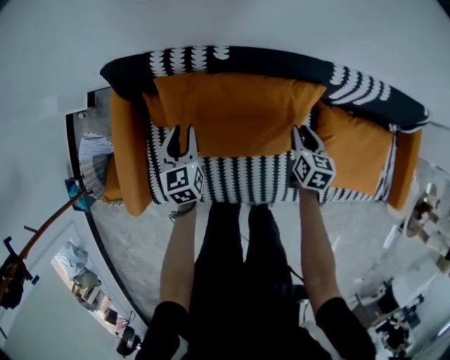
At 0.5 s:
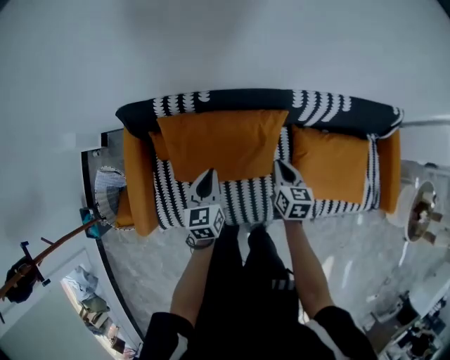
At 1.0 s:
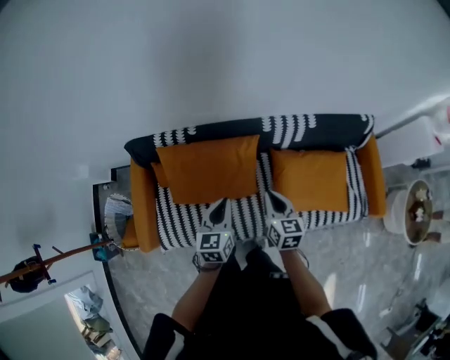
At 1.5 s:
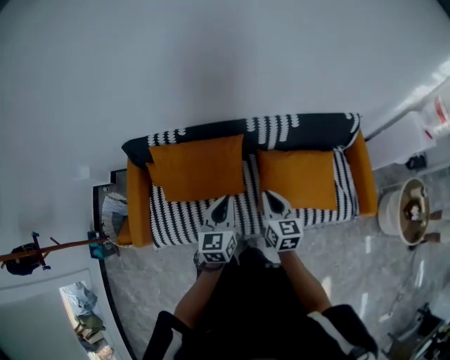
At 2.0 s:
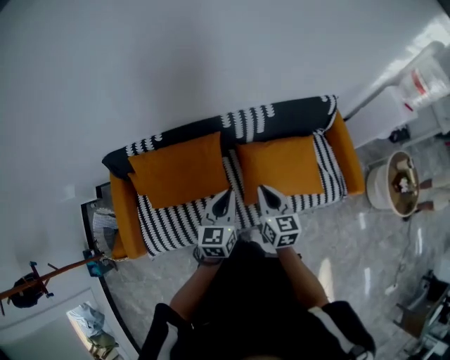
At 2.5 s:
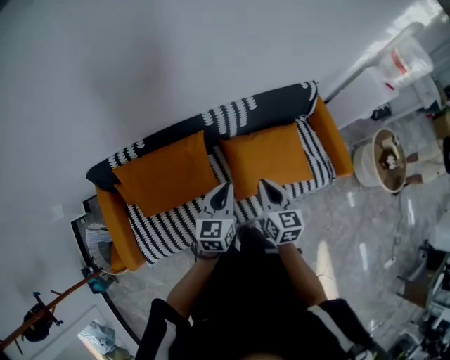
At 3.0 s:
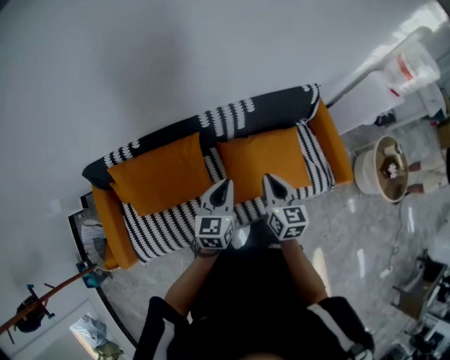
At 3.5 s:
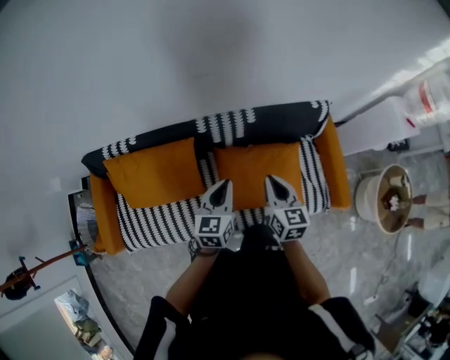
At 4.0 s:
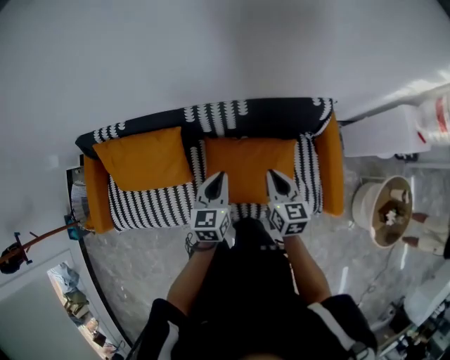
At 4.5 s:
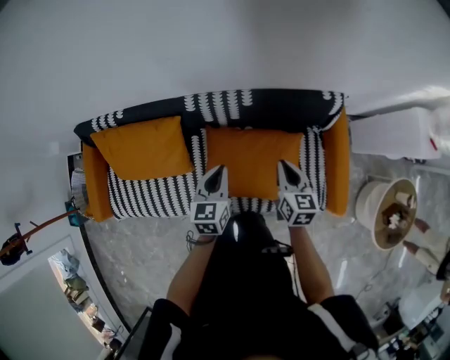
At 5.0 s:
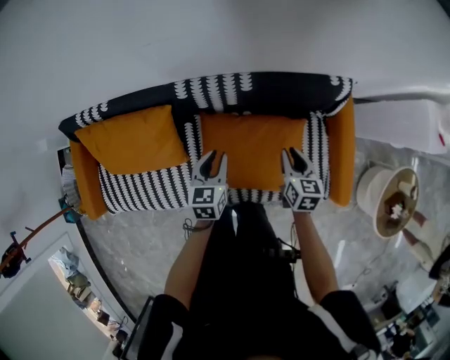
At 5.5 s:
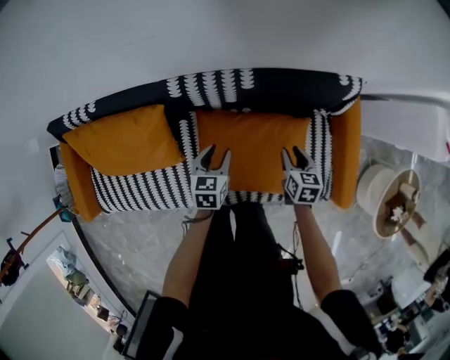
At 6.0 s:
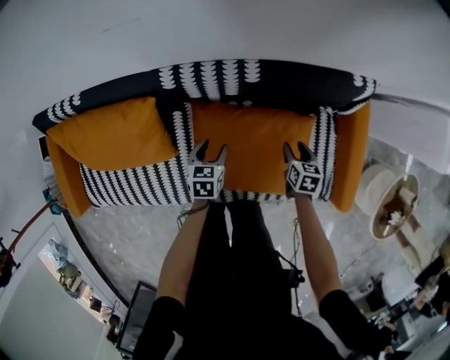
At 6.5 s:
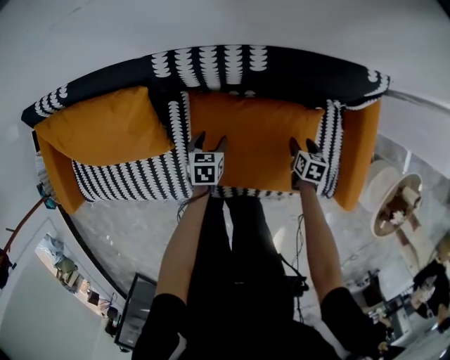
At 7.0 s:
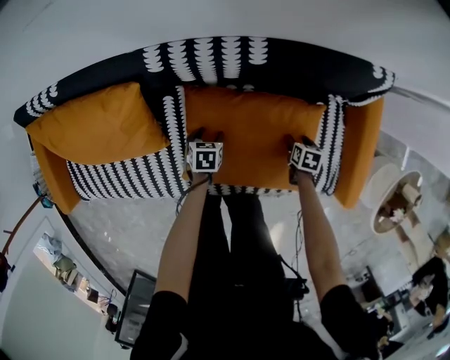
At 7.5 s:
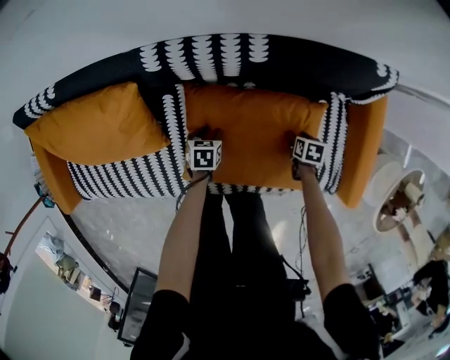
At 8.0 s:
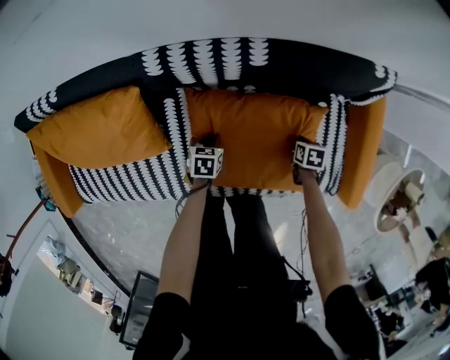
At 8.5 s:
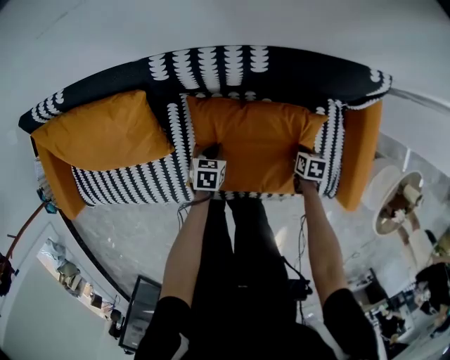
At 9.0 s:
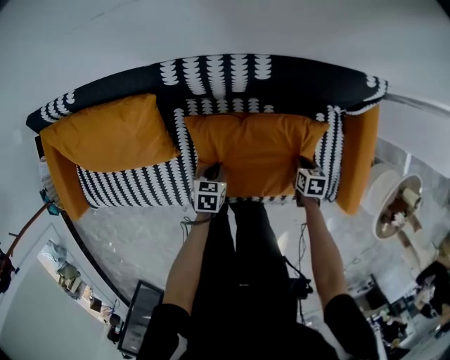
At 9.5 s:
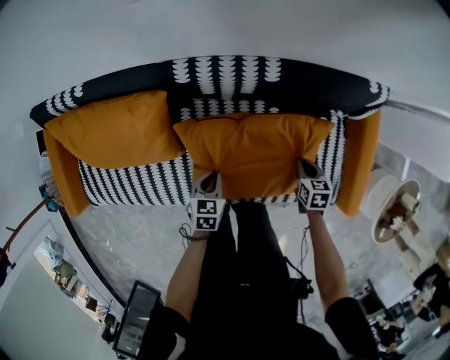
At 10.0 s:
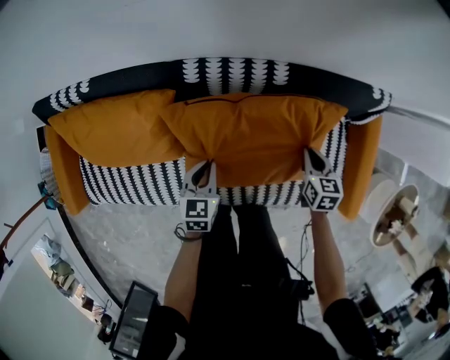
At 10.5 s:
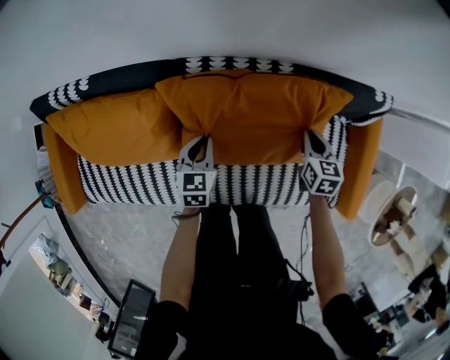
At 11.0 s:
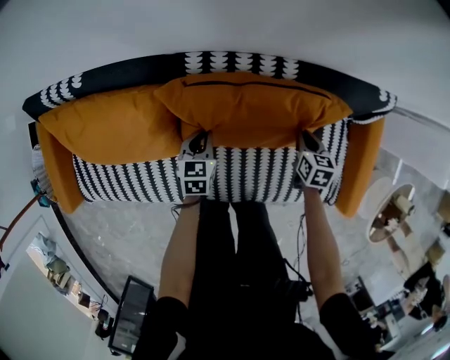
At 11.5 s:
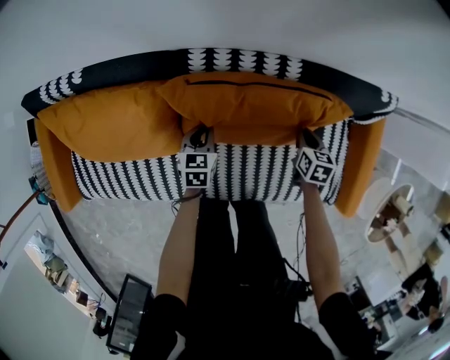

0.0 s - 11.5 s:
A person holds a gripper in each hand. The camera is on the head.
0.0 s - 2.0 s: The right gripper is displaced upward, backward and to the right by some 40 cm, rotates about 20 degrees, and closes its fingers, while the left gripper travels to the right, upward and backward by roughly 50 cm, turns by some 30 degrees, and closes.
2.0 s - 4.0 s: Both grippers move to the right and forward, approximately 30 cm.
4.0 s - 6.0 s: Both grippers travel together downward, roughly 35 cm. The left gripper turns by roughly 30 degrees, and opens its fingers. The right gripper angles its fingers downward, by about 30 degrees, and opens.
6.0 s - 7.5 s: Both grippers move downward, some 15 cm. The right gripper rotates approximately 20 degrees.
7.5 s - 9.5 s: The grippers both shift upward by about 15 cm. The right gripper rotates about 20 degrees, and closes. Meanwhile the left gripper closes up.
9.5 s - 11.5 s: Both grippers move forward and to the left, roughly 15 cm.

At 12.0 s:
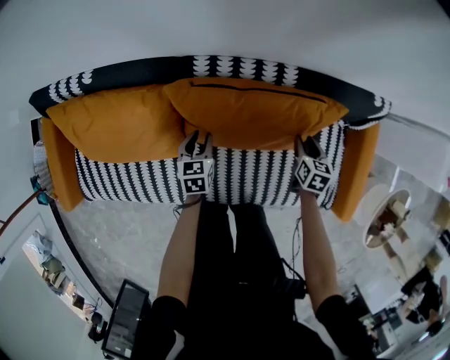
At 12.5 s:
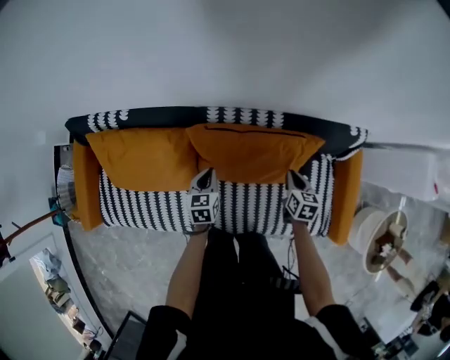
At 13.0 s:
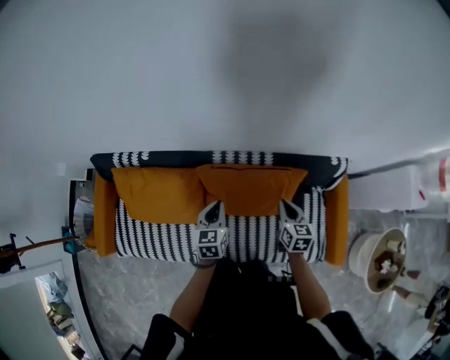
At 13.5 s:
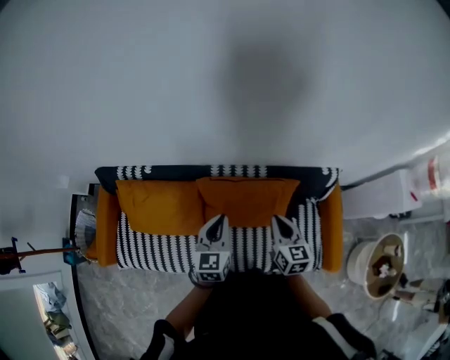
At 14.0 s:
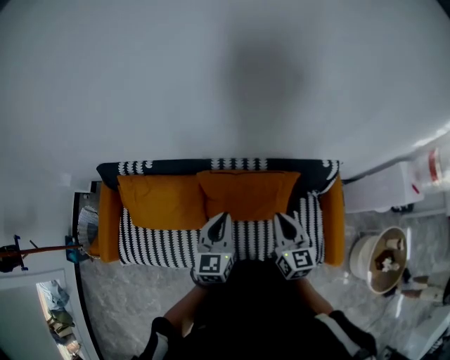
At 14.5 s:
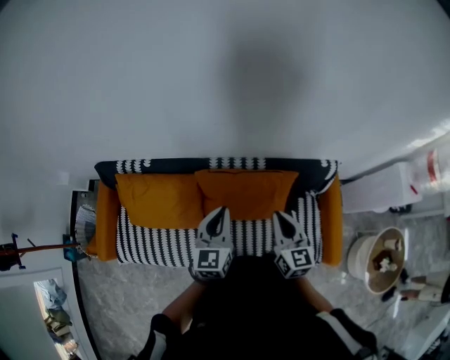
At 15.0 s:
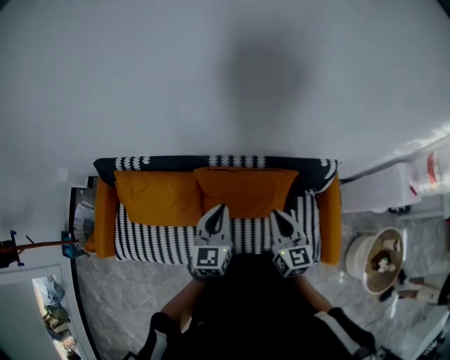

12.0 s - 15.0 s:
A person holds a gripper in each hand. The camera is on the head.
12.0 s - 13.5 s: The two grippers go roughly 40 cm upward. The left gripper swivels some 30 degrees, and closes its fingers. The right gripper tips its fingers upward by about 30 degrees, and closes.
13.5 s - 15.0 s: The right gripper travels upward by roughly 5 cm.

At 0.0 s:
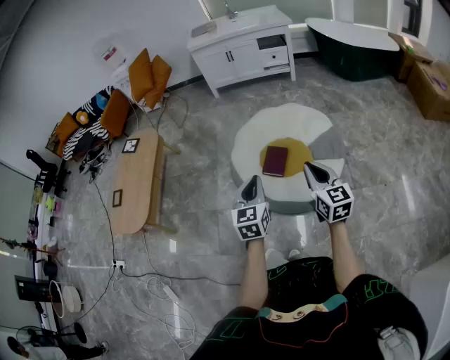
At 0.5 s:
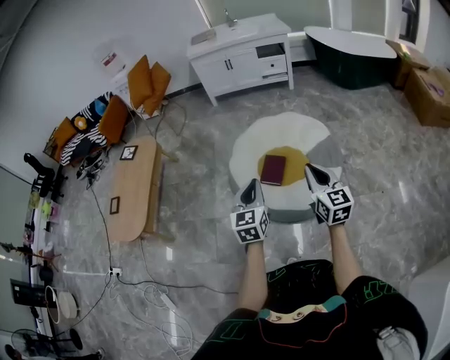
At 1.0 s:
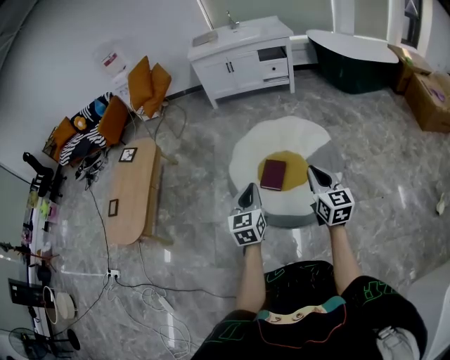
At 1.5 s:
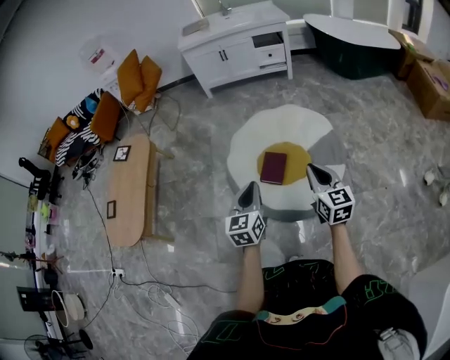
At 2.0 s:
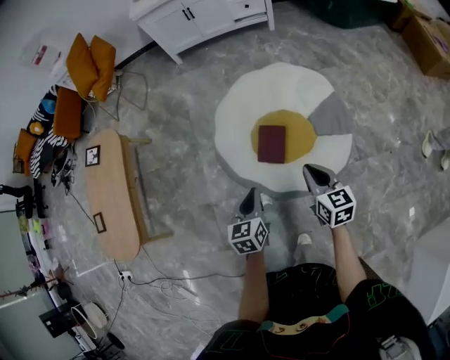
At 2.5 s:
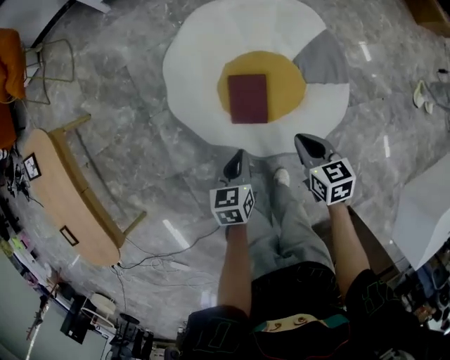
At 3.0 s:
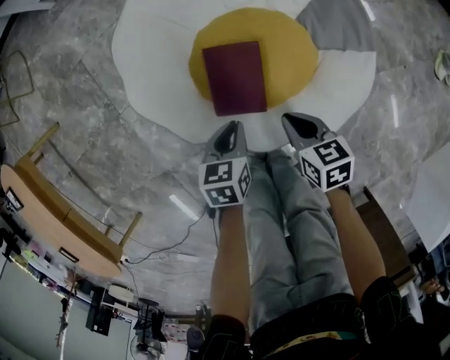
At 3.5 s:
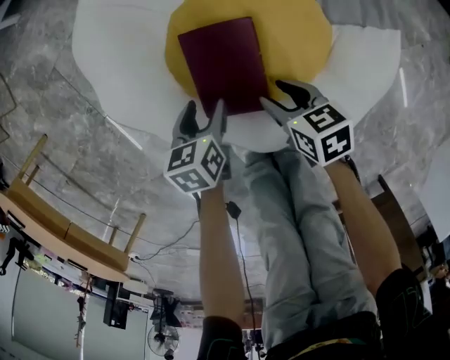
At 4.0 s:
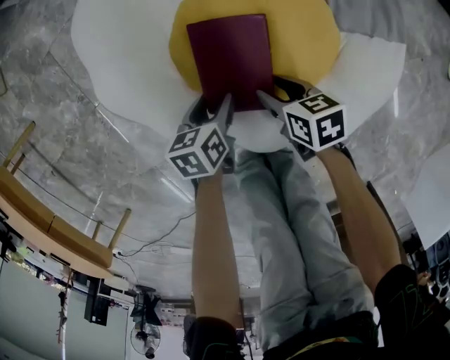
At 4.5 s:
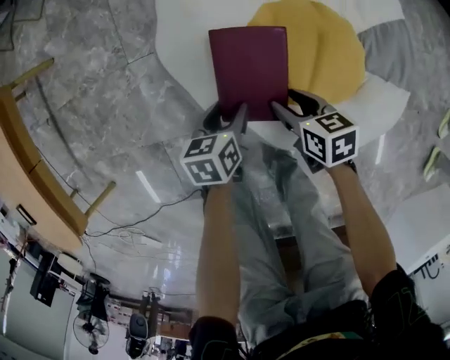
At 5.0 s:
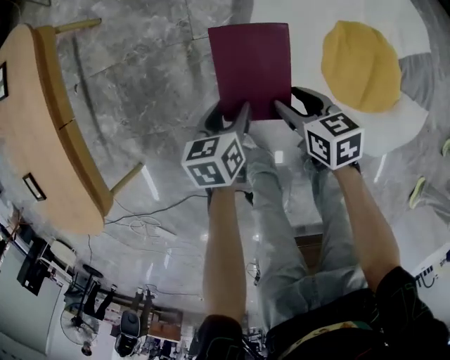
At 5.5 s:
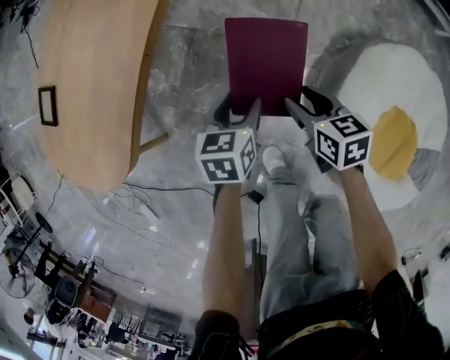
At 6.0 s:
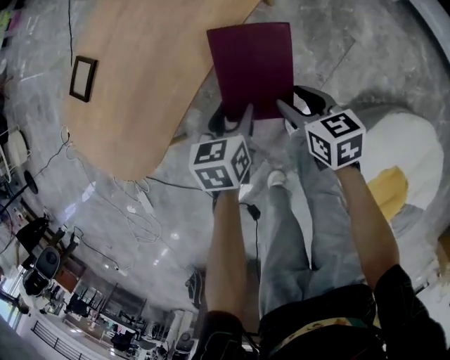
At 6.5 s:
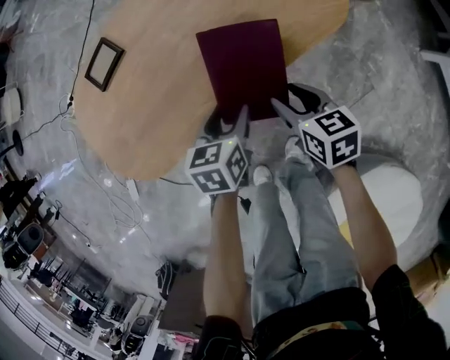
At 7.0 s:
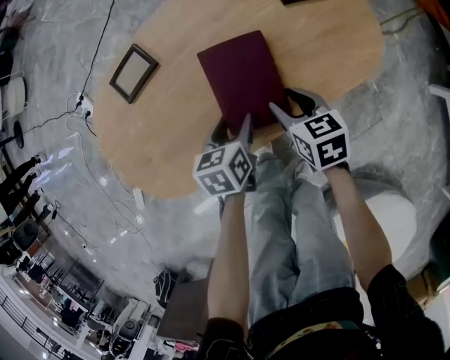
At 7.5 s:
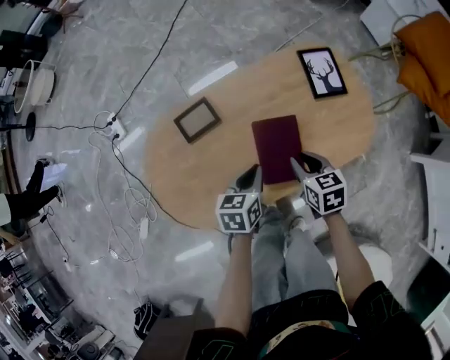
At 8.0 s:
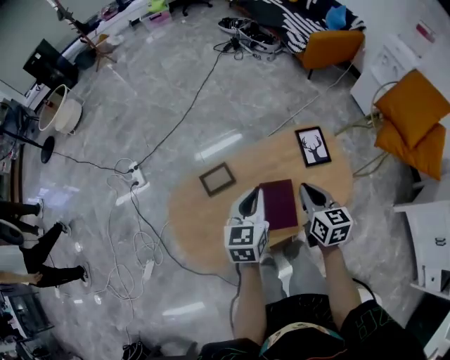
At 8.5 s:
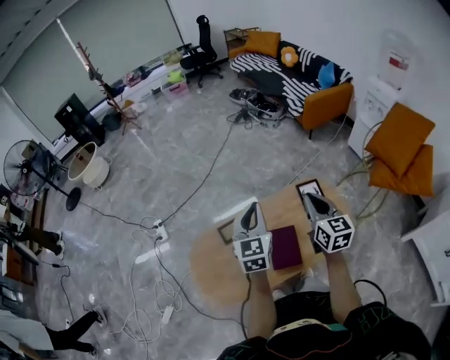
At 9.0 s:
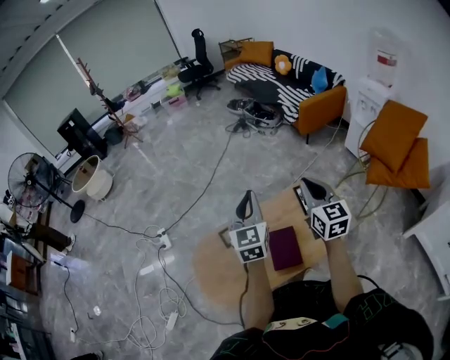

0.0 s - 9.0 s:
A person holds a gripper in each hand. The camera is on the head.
0.0 s - 2.0 s: Both grippers travel together downward and forward, about 25 cm. The left gripper turns by about 20 degrees. Meanwhile the right gripper changes its angle by about 20 degrees.
2.0 s - 4.5 s: Both grippers travel together downward, roughly 40 cm. The left gripper changes its angle by about 30 degrees, and opens up. Meanwhile the right gripper turns by approximately 30 degrees, and opens its fingers.
4.5 s - 7.0 s: Both grippers are carried about 90 cm. The right gripper twists about 60 degrees counterclockwise, seen from behind; the left gripper swivels some 70 degrees.
7.0 s - 9.0 s: The grippers both shift upward by about 60 cm. The right gripper angles its fingers upward, by about 40 degrees, and closes. Meanwhile the left gripper angles its fingers upward, by approximately 50 degrees, and closes up.

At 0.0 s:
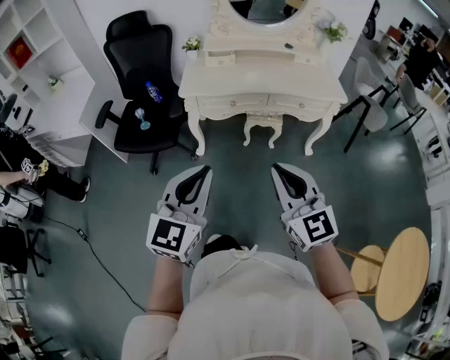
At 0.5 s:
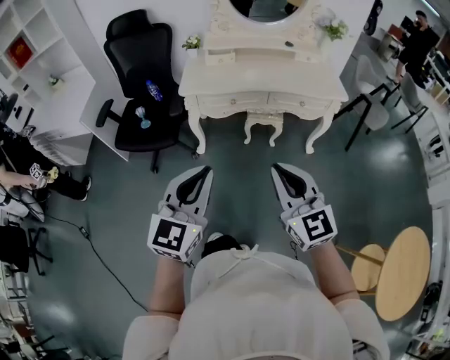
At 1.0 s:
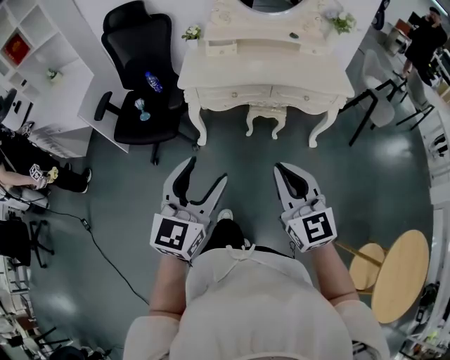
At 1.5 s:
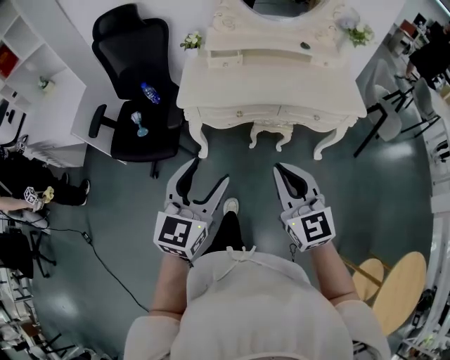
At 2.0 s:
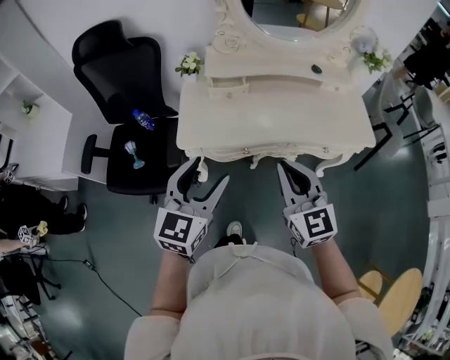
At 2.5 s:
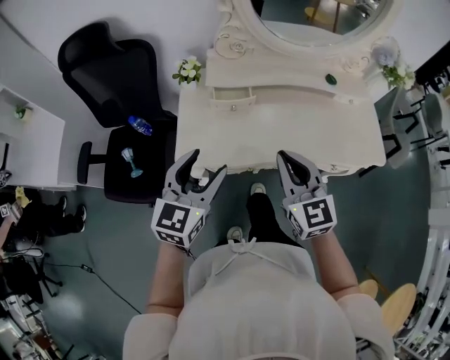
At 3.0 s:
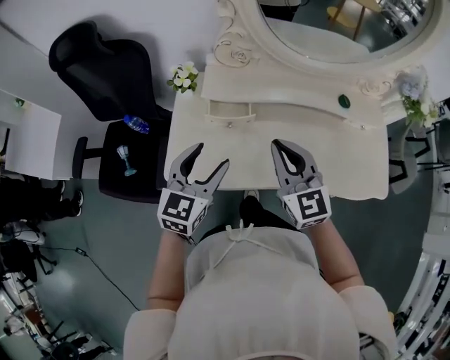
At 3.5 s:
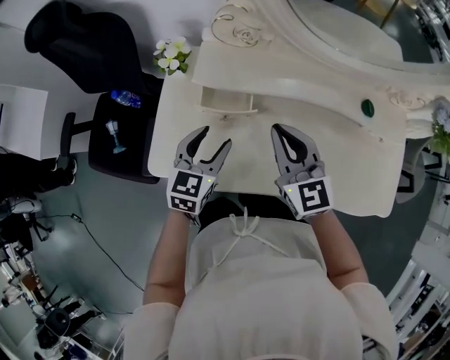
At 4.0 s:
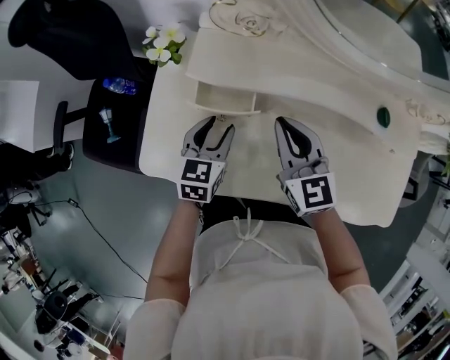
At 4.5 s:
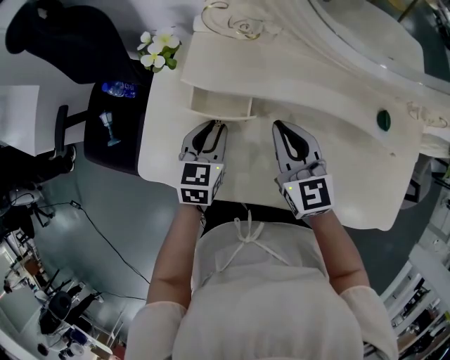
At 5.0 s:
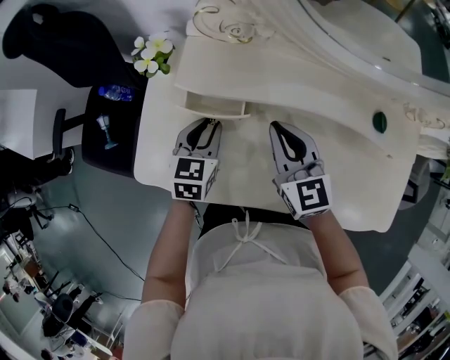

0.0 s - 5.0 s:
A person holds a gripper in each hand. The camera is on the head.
0.0 s - 2.5 s: Both grippers are carried forward, approximately 50 cm. The left gripper opens up.
2.5 s - 5.0 s: The right gripper travels forward and downward by approximately 30 cm, while the left gripper shifts roughly 35 cm forward, downward and to the right, rotates some 30 degrees, and closes up.
